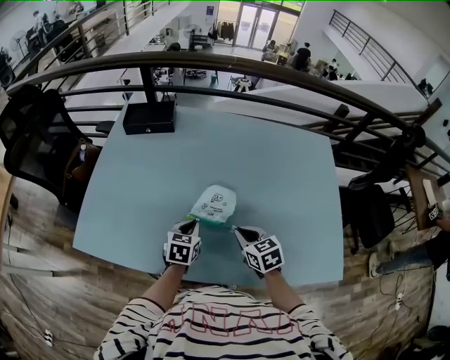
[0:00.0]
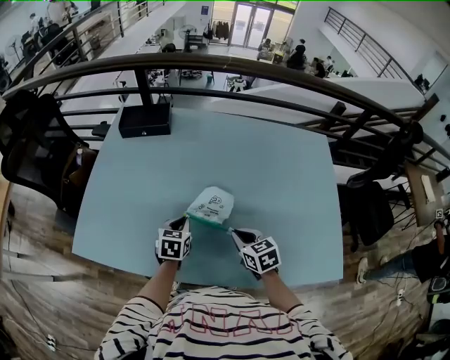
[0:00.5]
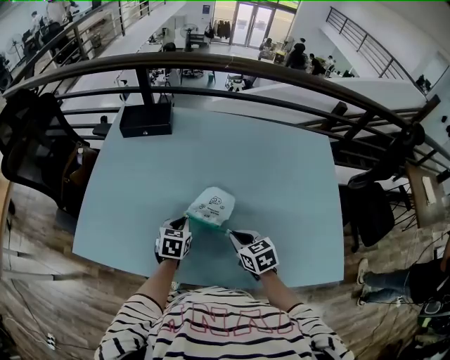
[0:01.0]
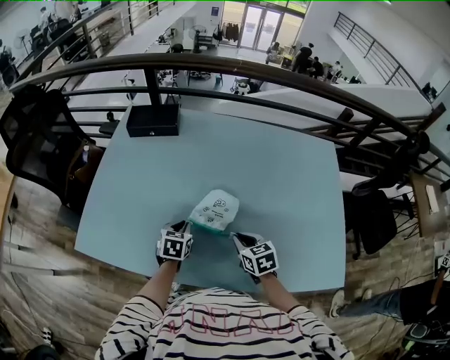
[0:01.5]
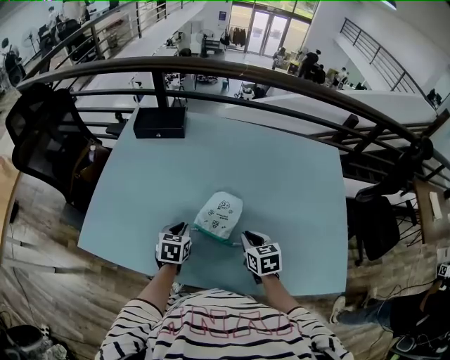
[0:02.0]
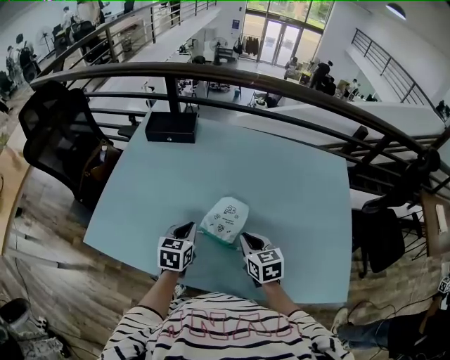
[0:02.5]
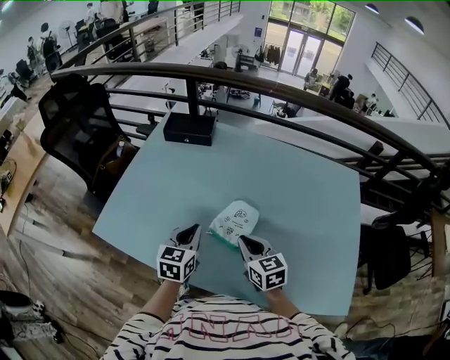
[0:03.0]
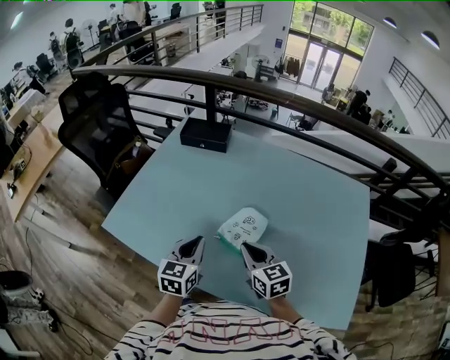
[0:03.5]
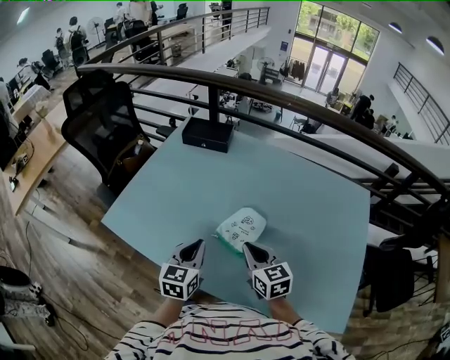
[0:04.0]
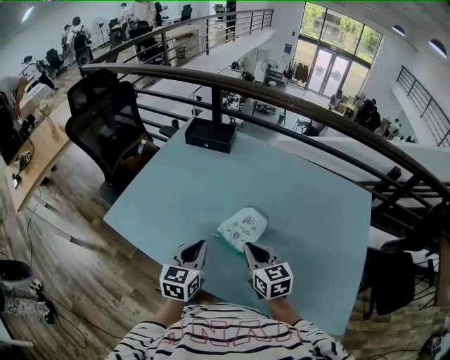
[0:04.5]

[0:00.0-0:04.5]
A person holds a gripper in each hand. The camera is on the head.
0:00.0 to 0:02.0: The left gripper heads to the left, covering approximately 5 cm.
0:02.0 to 0:04.5: The right gripper travels upward and to the left by approximately 10 cm, and changes its angle by some 30 degrees. The left gripper shifts some 15 cm upward and backward, and turns by some 30 degrees.

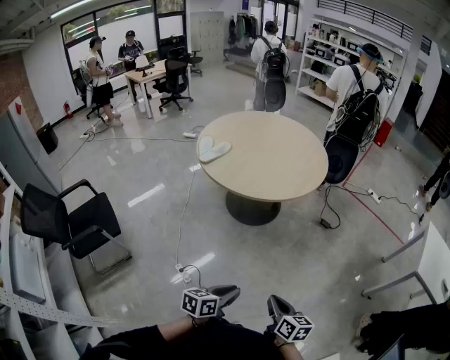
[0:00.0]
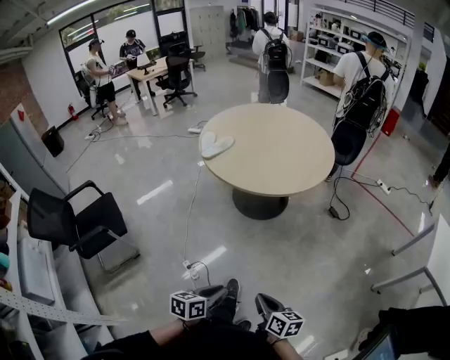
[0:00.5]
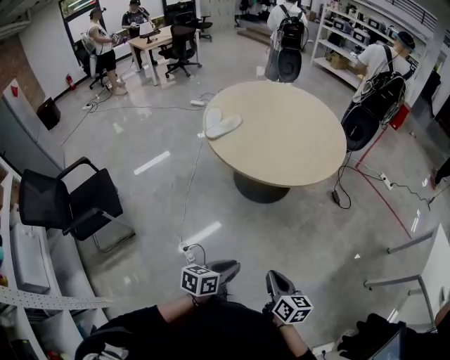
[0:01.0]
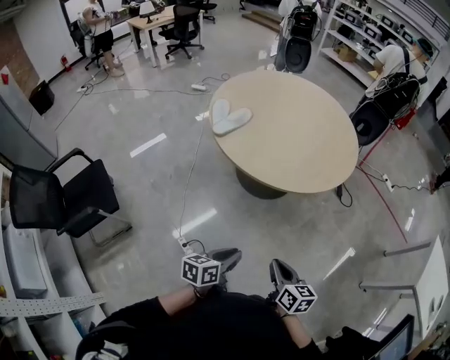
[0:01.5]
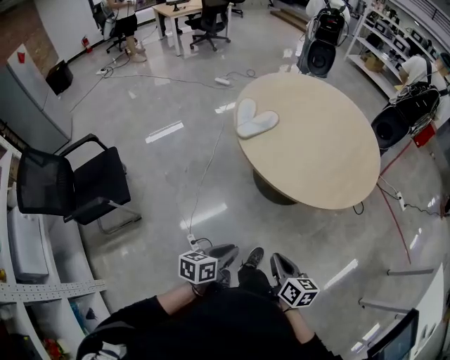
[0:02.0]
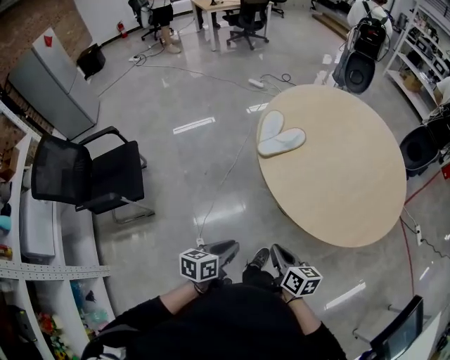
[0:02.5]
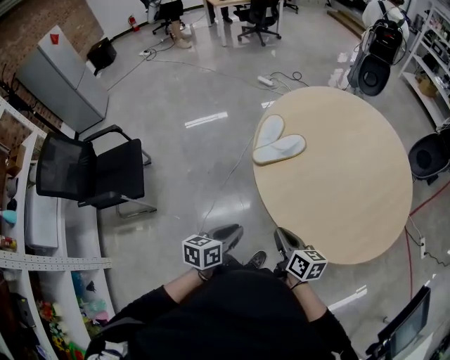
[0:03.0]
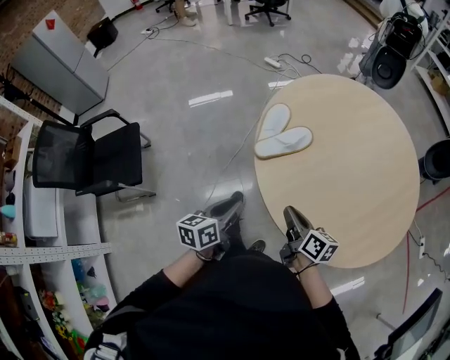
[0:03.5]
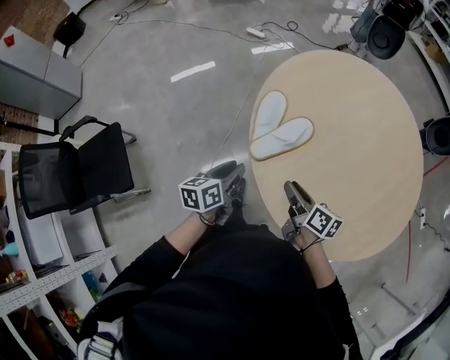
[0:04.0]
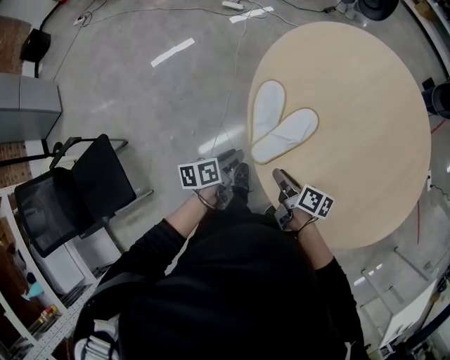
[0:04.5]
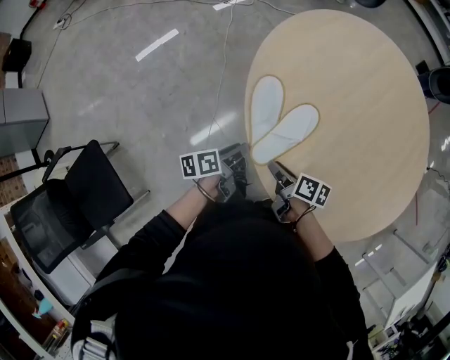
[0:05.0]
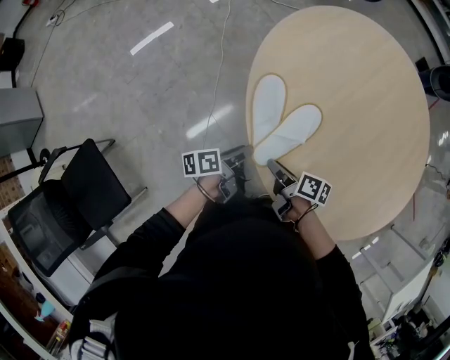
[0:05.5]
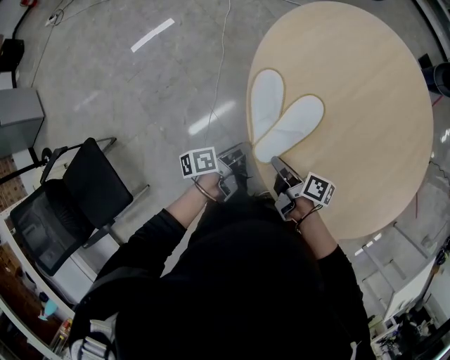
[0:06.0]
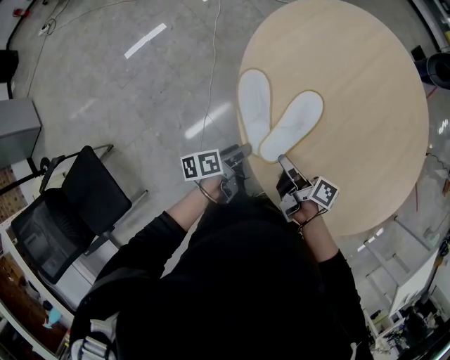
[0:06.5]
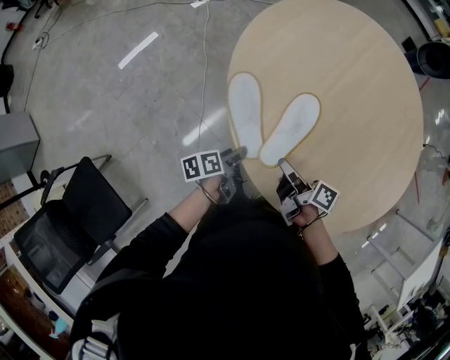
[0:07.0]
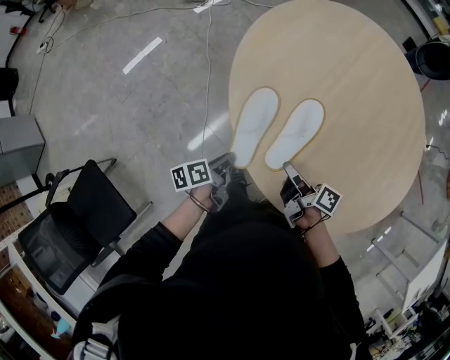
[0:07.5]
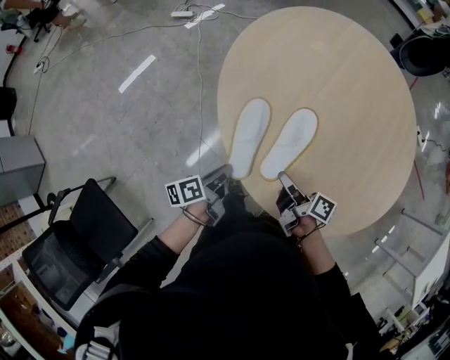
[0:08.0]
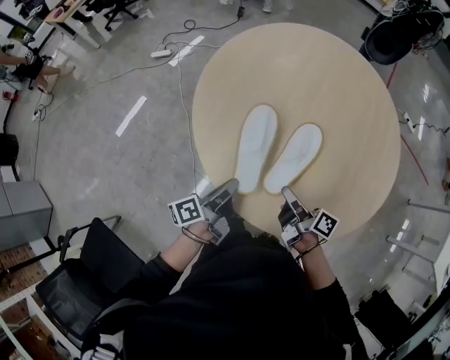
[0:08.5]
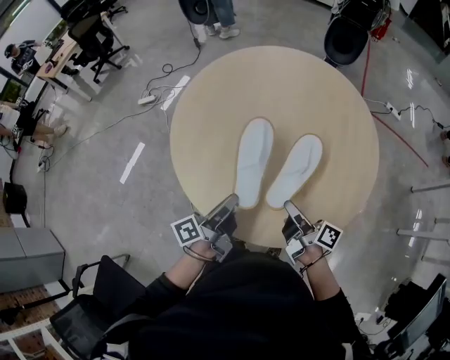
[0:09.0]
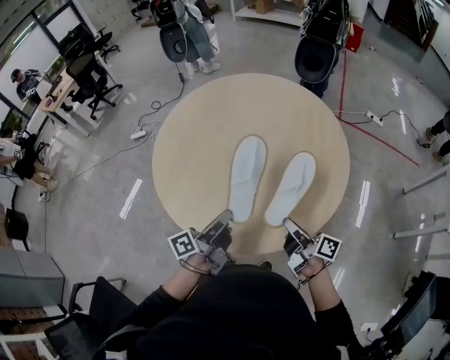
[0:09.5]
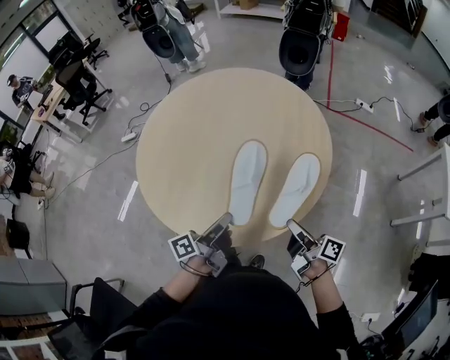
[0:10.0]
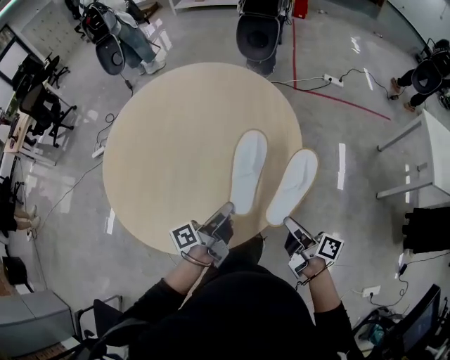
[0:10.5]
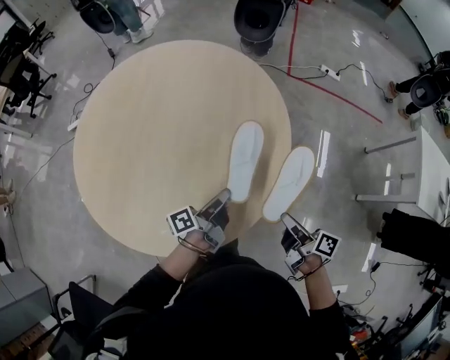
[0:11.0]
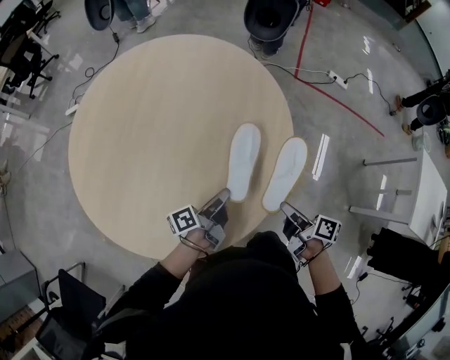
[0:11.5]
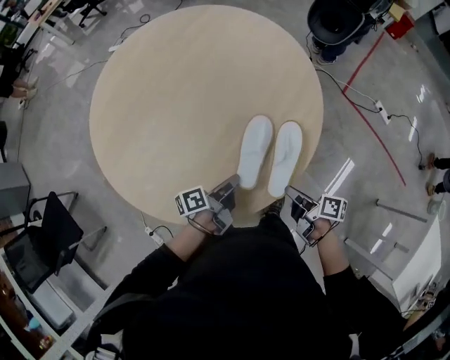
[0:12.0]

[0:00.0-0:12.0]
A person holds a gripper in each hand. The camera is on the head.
0:00.0 to 0:02.0: The two grippers go about 35 cm forward and to the left.
0:02.0 to 0:04.0: The two grippers travel together, forward, some 50 cm. The right gripper changes its angle by about 20 degrees, and opens its fingers.
0:04.0 to 0:06.0: The right gripper heads downward, forward and to the left, covering roughly 15 cm, rotates about 20 degrees, and closes its fingers. The left gripper heads downward and forward, covering some 20 cm, and changes its angle by approximately 40 degrees.
0:06.0 to 0:08.0: The right gripper goes approximately 10 cm to the right and upward, and changes its angle by about 20 degrees, while the left gripper shifts about 5 cm upward, and closes up.
0:08.0 to 0:10.0: The two grippers travel together, to the right, roughly 40 cm. The right gripper changes its angle by roughly 30 degrees, while the left gripper shifts some 25 cm upward, and turns by some 30 degrees.
0:10.0 to 0:12.0: The left gripper moves roughly 35 cm, and swivels approximately 20 degrees, while the right gripper changes place by approximately 35 cm, and changes its angle by approximately 40 degrees.

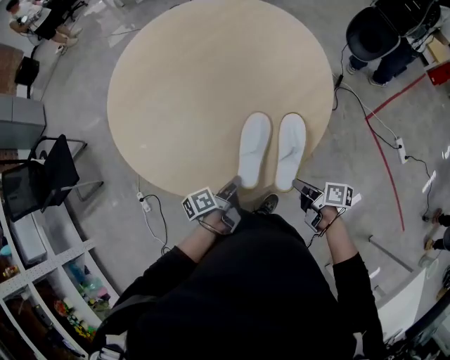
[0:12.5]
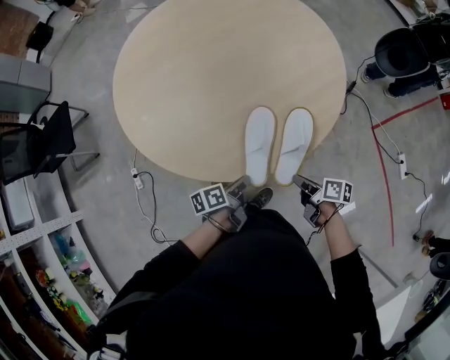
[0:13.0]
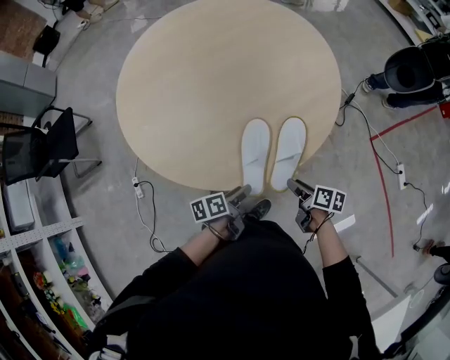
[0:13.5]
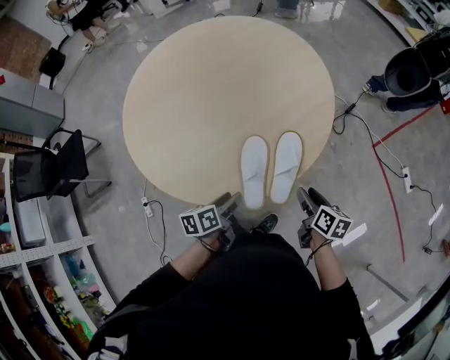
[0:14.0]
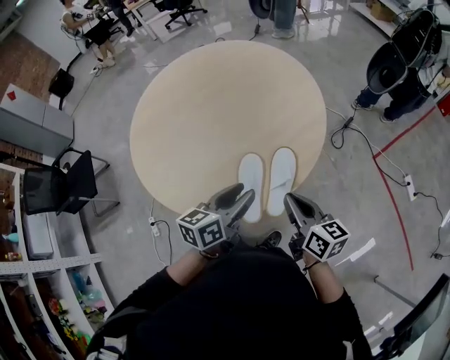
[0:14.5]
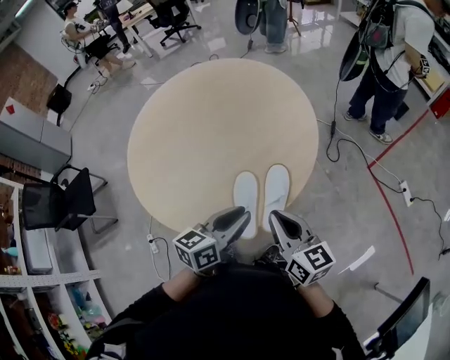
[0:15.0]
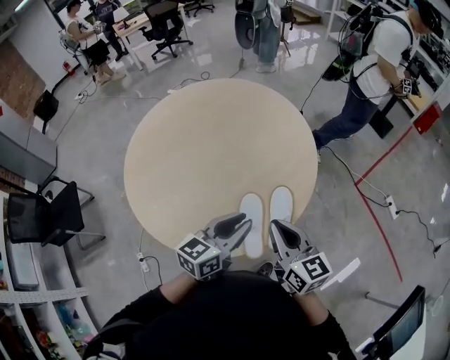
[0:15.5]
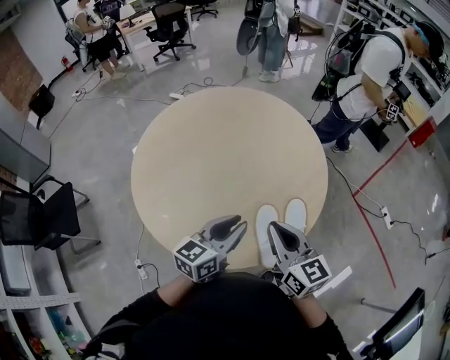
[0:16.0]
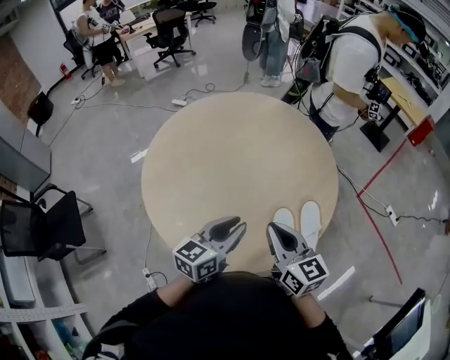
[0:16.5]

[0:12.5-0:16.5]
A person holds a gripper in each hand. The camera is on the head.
0:12.5 to 0:14.5: Both grippers move upward, roughly 20 cm. The right gripper turns by some 40 degrees, and opens and closes again; the left gripper twists some 50 degrees clockwise, seen from behind, and opens.
0:14.5 to 0:16.5: The two grippers go roughly 25 cm to the left. The right gripper turns by some 20 degrees.

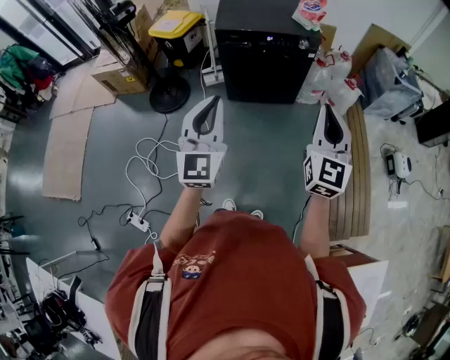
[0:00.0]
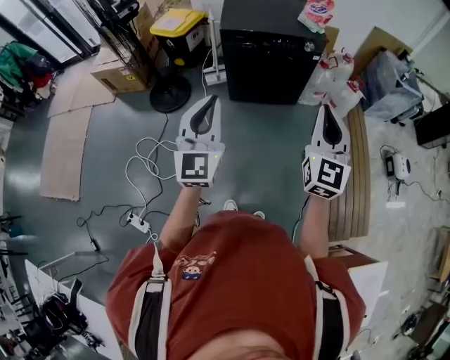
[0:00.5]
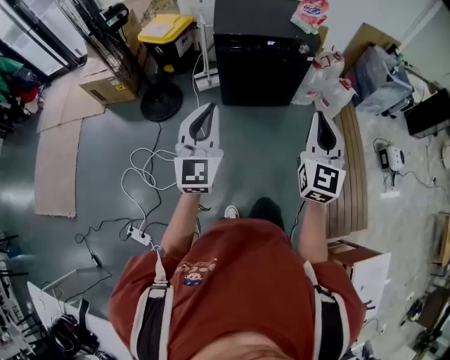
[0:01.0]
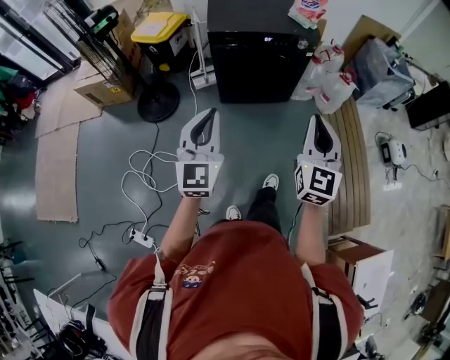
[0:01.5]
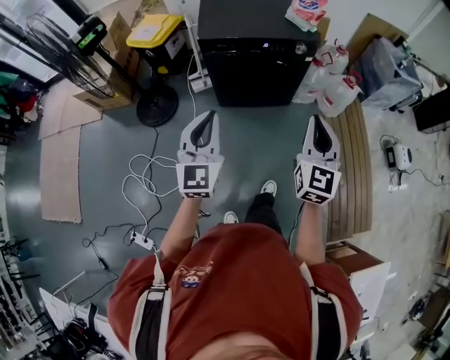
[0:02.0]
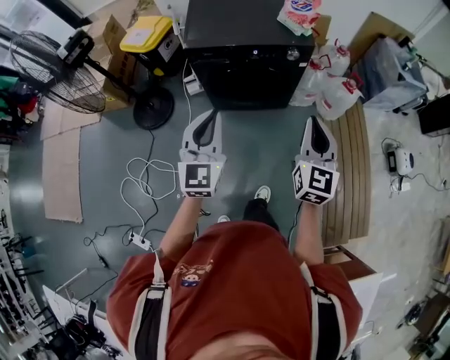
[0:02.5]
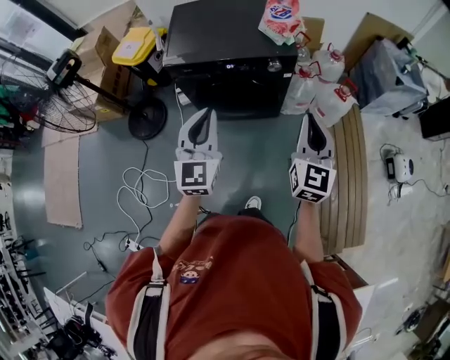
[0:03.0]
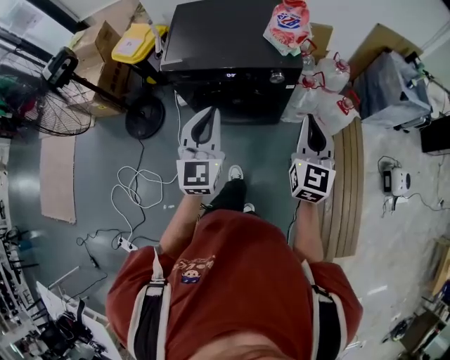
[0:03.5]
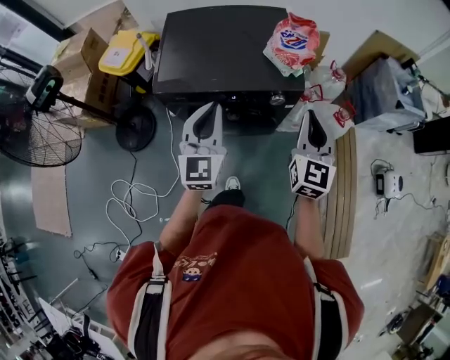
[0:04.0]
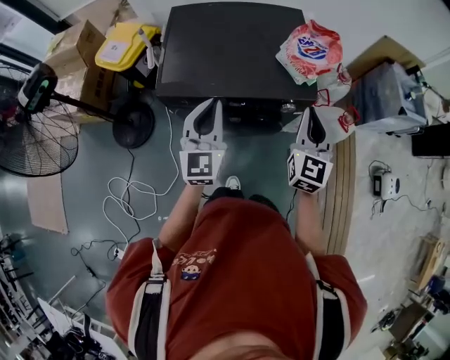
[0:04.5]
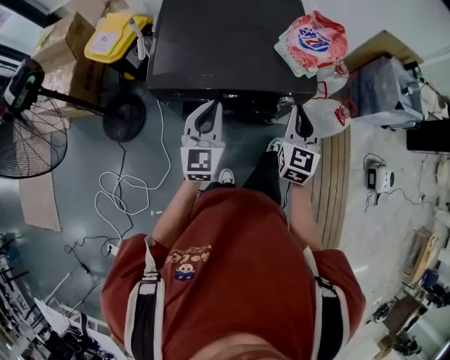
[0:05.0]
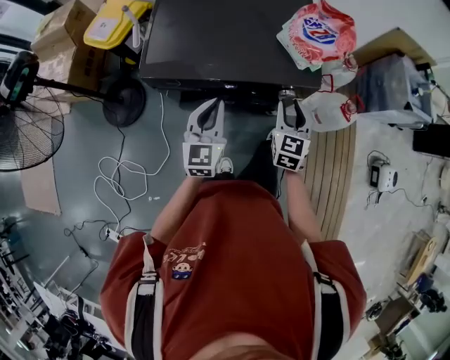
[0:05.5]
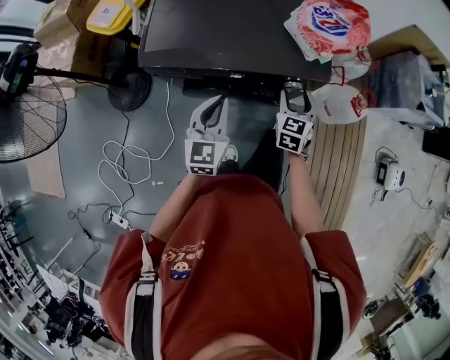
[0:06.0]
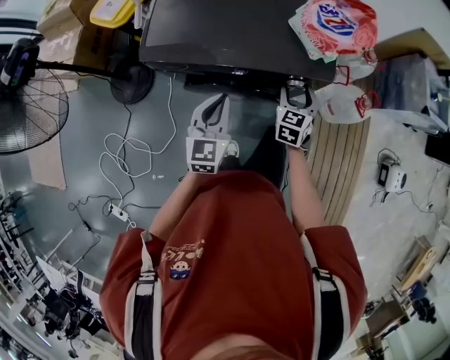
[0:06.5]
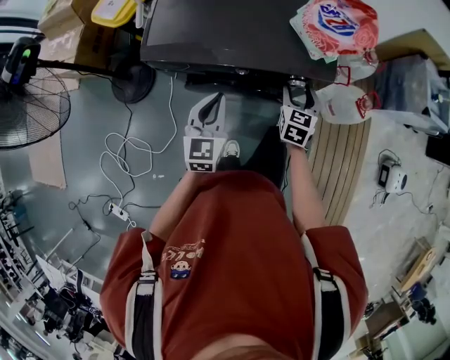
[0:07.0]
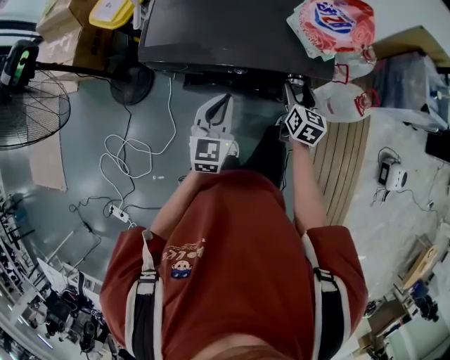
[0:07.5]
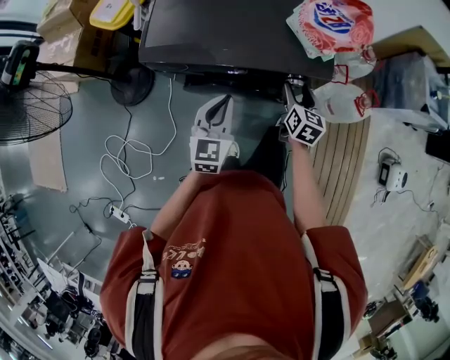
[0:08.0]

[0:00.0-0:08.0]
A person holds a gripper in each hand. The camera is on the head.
0:00.0 to 0:02.0: The grippers both shift forward and downward by some 20 cm.
0:02.0 to 0:04.0: The two grippers travel together, forward, some 40 cm.
0:04.0 to 0:06.0: The left gripper travels downward by about 20 cm, while the right gripper moves downward and forward, some 30 cm, swivels approximately 30 degrees, and opens.
0:06.0 to 0:08.0: The right gripper changes its angle by some 30 degrees.
